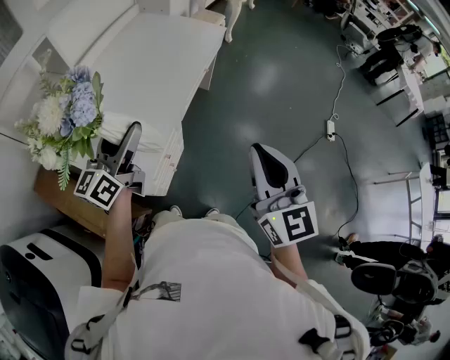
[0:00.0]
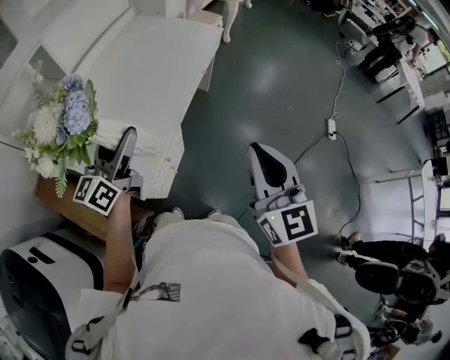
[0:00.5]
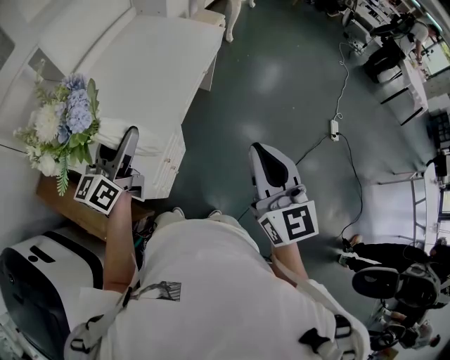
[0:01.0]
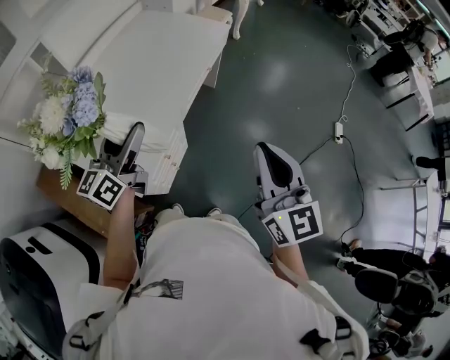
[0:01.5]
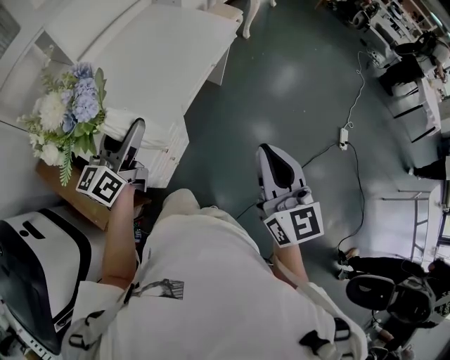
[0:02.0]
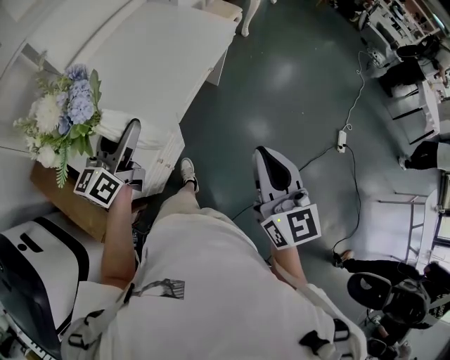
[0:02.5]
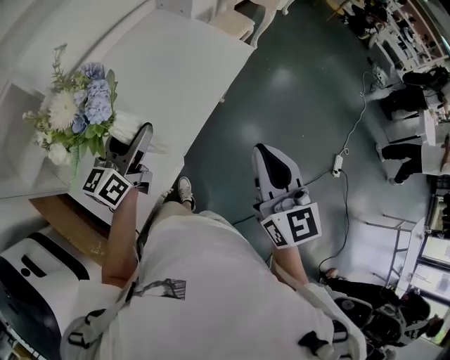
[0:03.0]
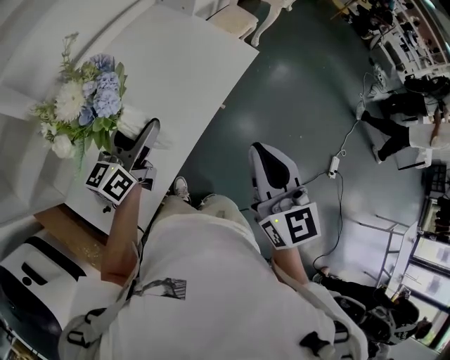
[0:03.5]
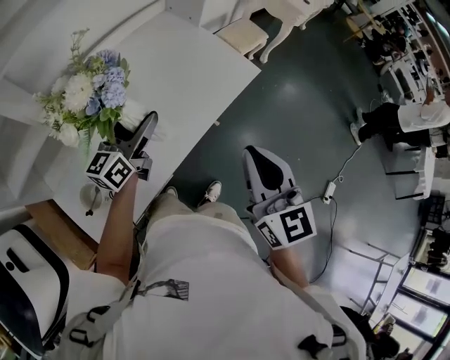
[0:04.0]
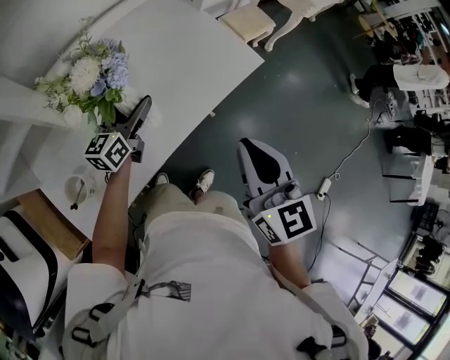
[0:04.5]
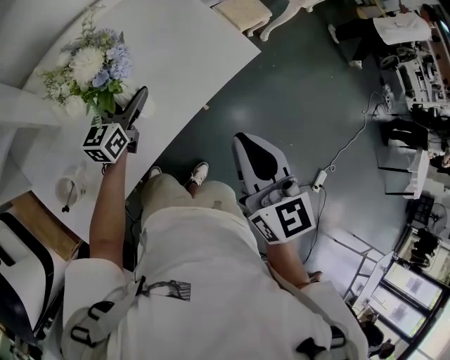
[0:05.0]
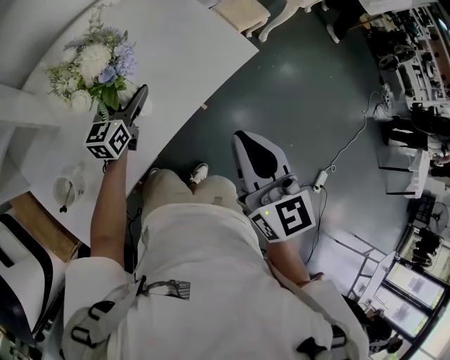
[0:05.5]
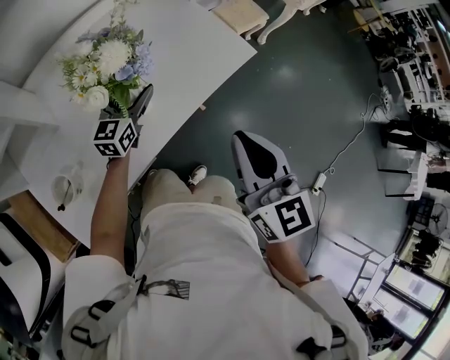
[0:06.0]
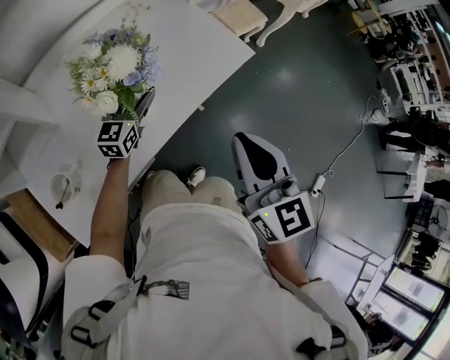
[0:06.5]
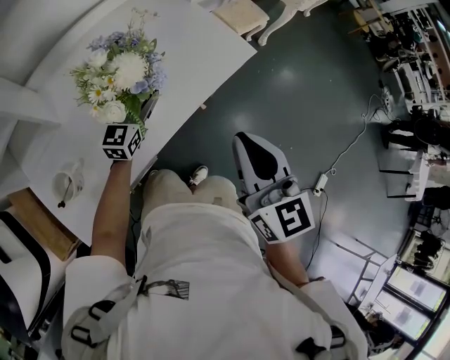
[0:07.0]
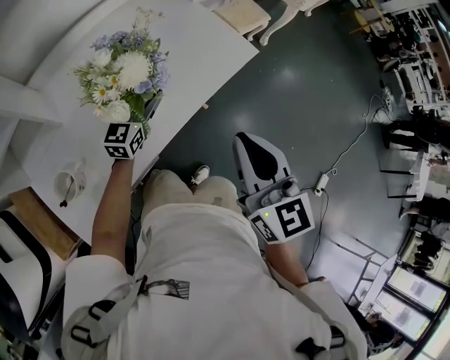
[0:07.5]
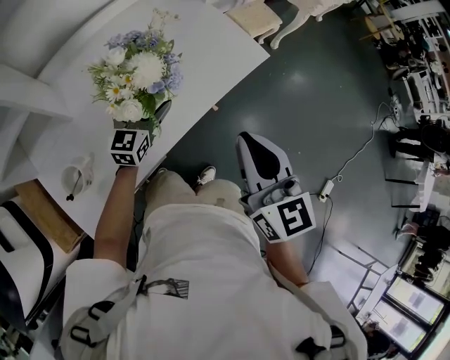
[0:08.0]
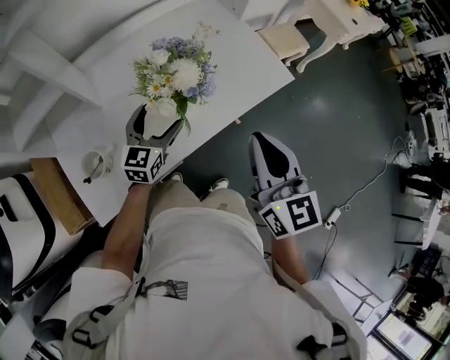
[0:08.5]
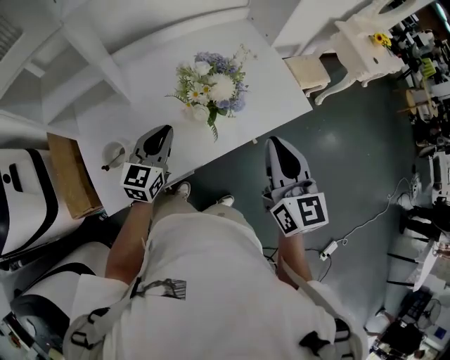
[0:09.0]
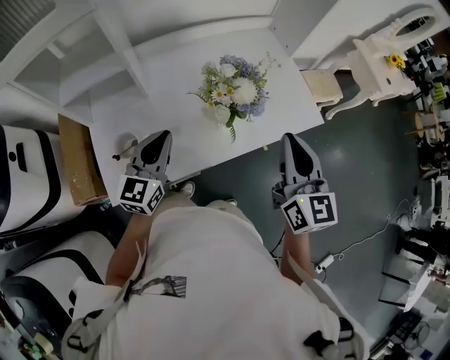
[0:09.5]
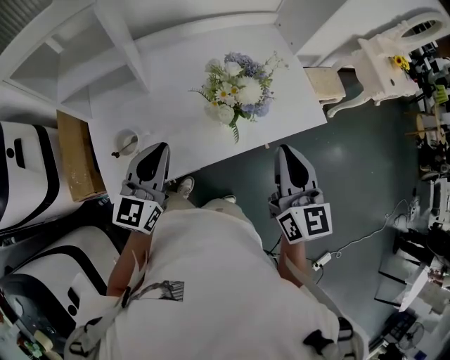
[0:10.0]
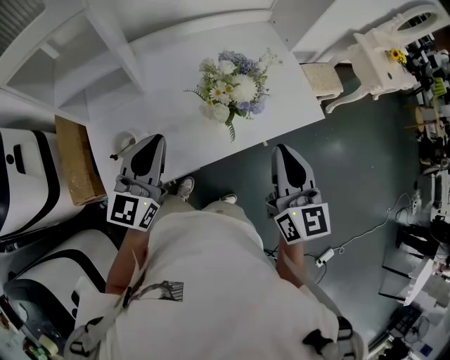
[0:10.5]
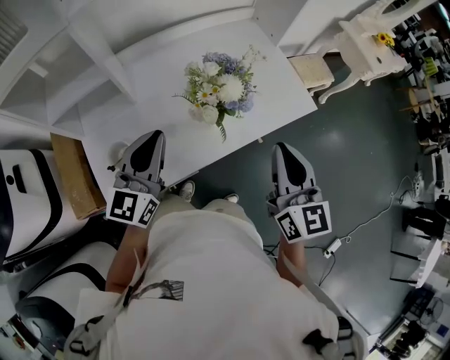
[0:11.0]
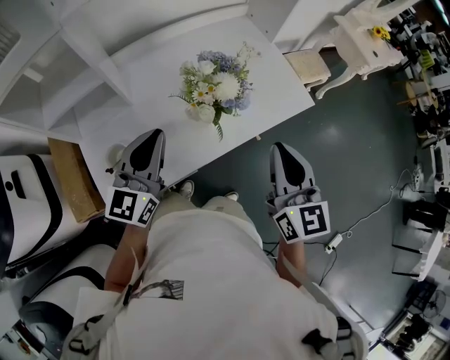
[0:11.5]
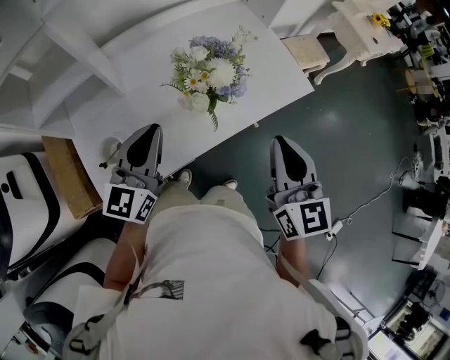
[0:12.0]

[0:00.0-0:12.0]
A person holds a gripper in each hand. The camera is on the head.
0.0 to 2.0 s: The grippers move only a little.
2.0 to 4.0 s: The two grippers go about 35 cm forward.
4.0 to 6.0 s: The right gripper moves approximately 5 cm, while the left gripper shifts roughly 15 cm downward and forward, and changes its angle by about 20 degrees.
6.0 to 8.0 s: The grippers move only a little.
8.0 to 10.0 s: The right gripper shifts some 5 cm to the left. The left gripper travels backward, to the left and upward by some 25 cm, swivels approximately 20 degrees, and closes.
10.0 to 12.0 s: The left gripper ends up about 5 cm from where it was.

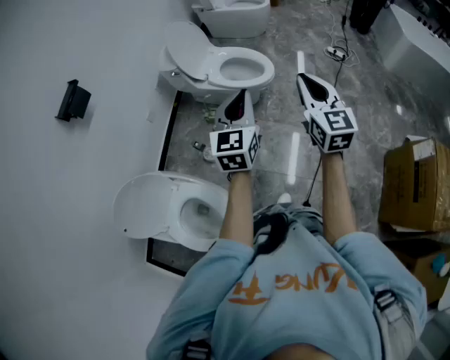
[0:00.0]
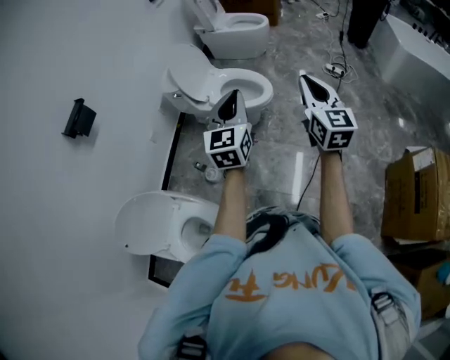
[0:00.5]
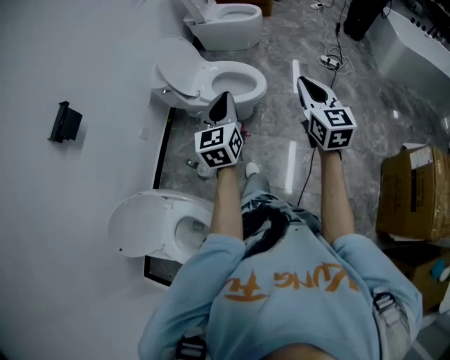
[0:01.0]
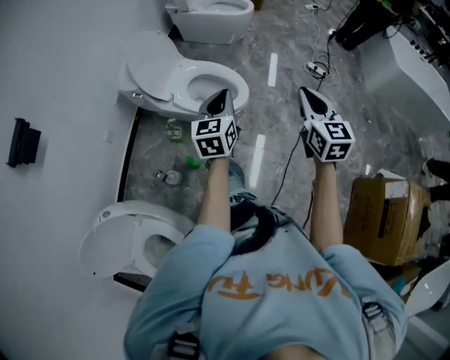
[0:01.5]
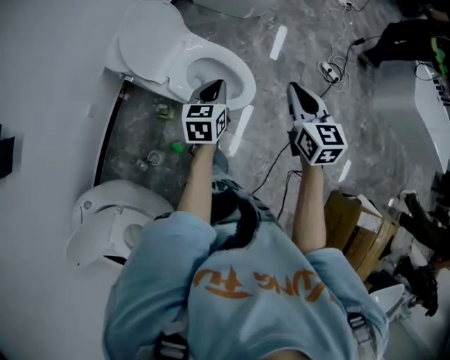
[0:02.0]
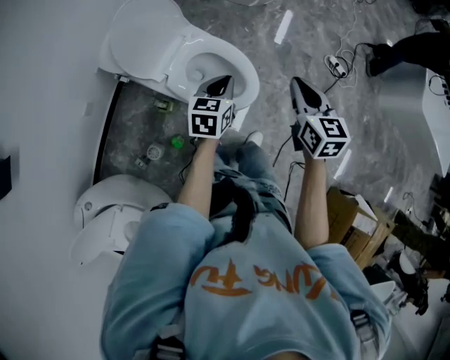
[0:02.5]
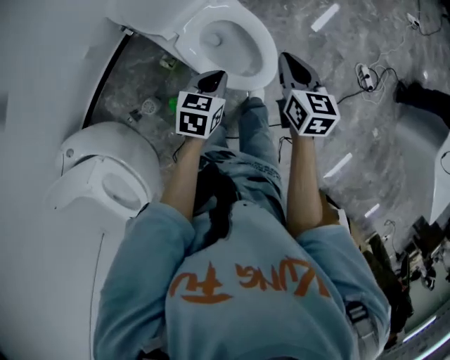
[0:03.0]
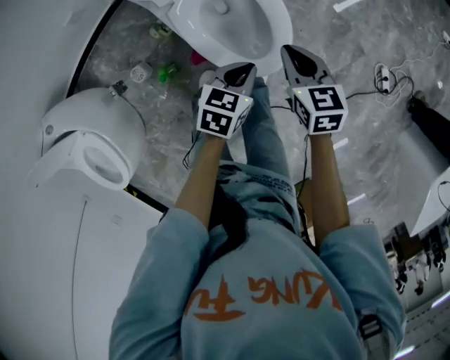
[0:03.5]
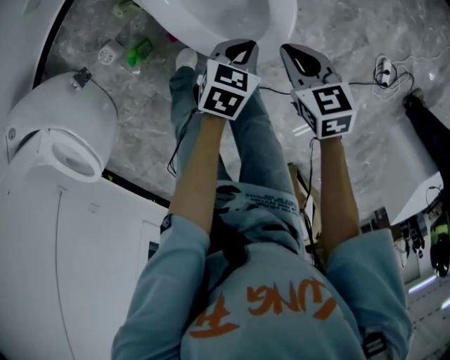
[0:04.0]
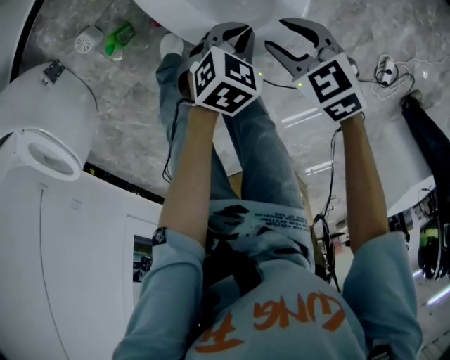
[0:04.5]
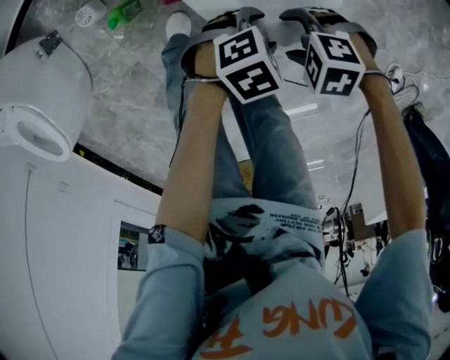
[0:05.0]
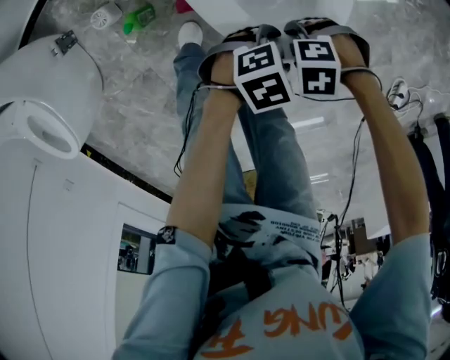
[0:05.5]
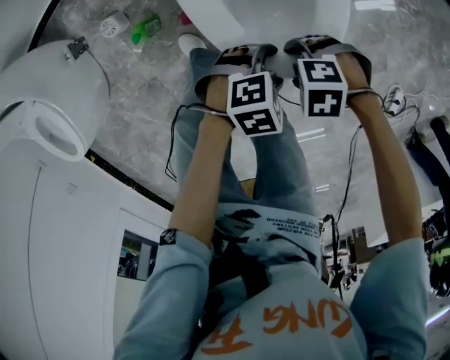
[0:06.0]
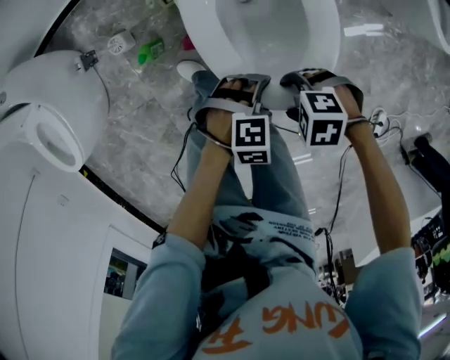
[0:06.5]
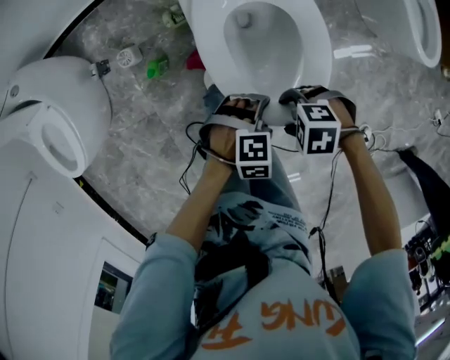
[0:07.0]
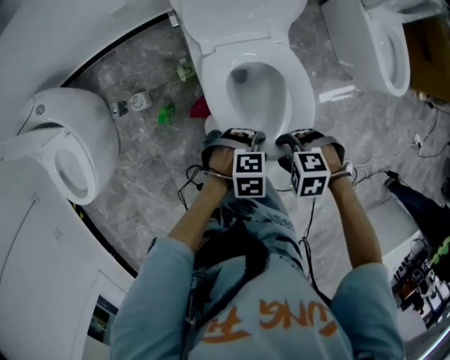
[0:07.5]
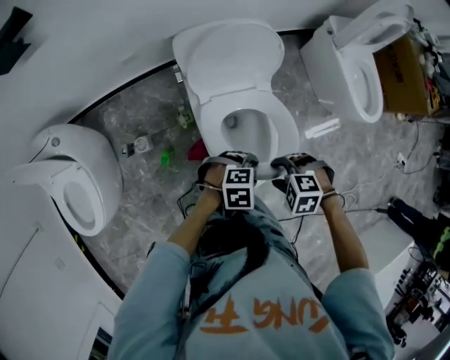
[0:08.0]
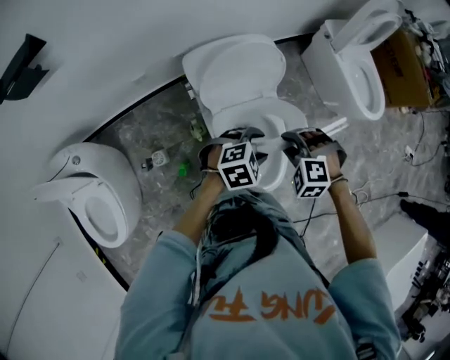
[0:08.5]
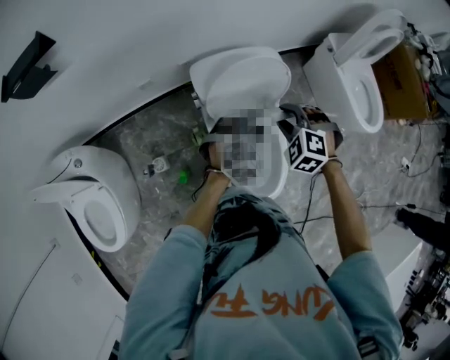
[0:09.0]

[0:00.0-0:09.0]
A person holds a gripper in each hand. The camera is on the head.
0.0 to 2.0 s: Both grippers are carried forward, about 40 cm. The right gripper changes its angle by some 20 degrees; the left gripper travels downward by some 20 cm, and rotates roughly 30 degrees.
2.0 to 4.5 s: The grippers both shift downward by roughly 40 cm. The right gripper tips its fingers downward by roughly 40 degrees, and opens its fingers, while the left gripper points its fingers about 30 degrees further downward.
4.5 to 7.0 s: The two grippers go some 10 cm upward. The left gripper rotates some 40 degrees, and opens up; the right gripper changes its angle by roughly 60 degrees.
7.0 to 9.0 s: The left gripper ends up roughly 40 cm from where it was, changes its angle by about 30 degrees, and closes its fingers. Meanwhile the right gripper changes place by approximately 40 cm, swivels some 60 degrees, and closes its fingers.

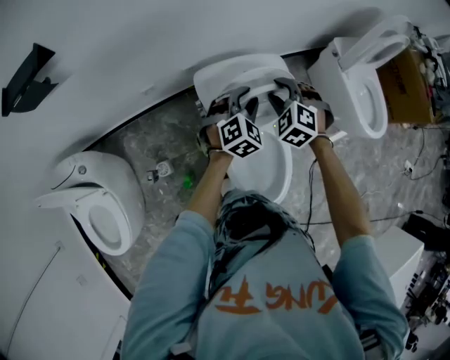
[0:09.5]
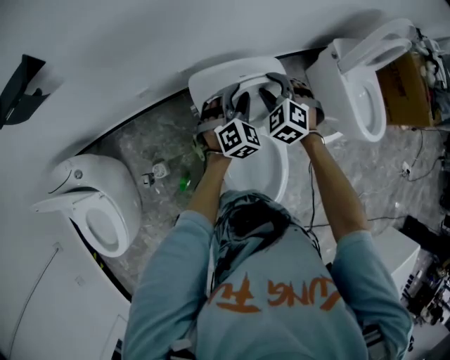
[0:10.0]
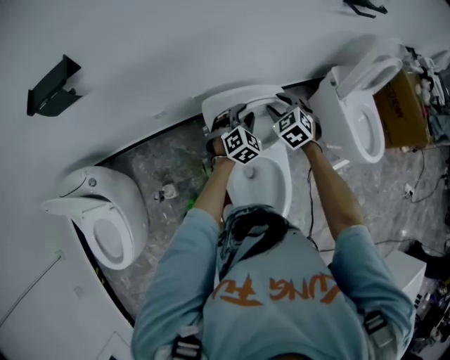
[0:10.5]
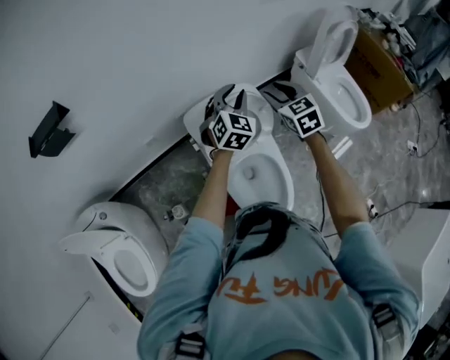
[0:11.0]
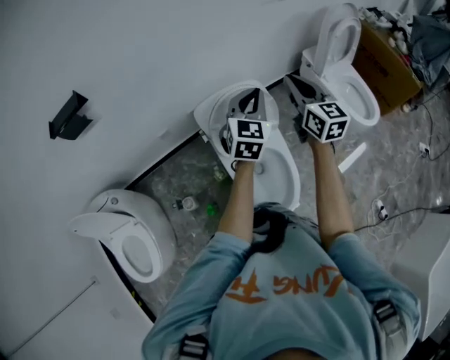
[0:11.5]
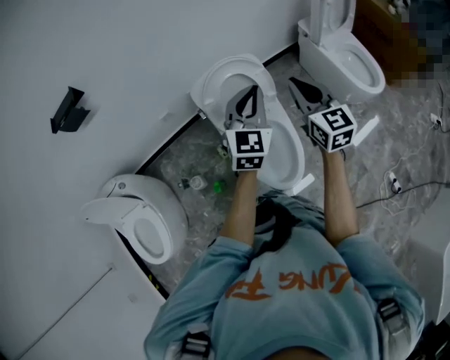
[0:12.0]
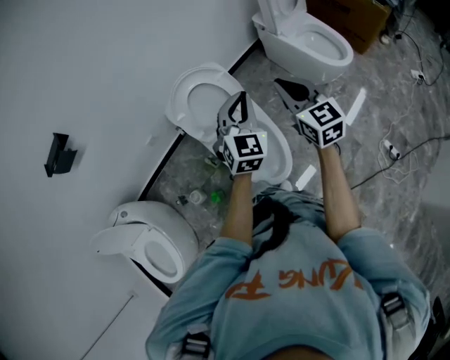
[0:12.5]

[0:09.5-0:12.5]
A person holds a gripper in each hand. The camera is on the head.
9.5 to 11.0 s: The left gripper is displaced upward by about 15 cm. The right gripper is displaced upward and to the right by some 15 cm, and rolls clockwise, seen from behind, by some 40 degrees.
11.0 to 12.5 s: The two grippers go about 30 cm backward and to the right. The right gripper changes its angle by roughly 30 degrees, and closes its fingers.

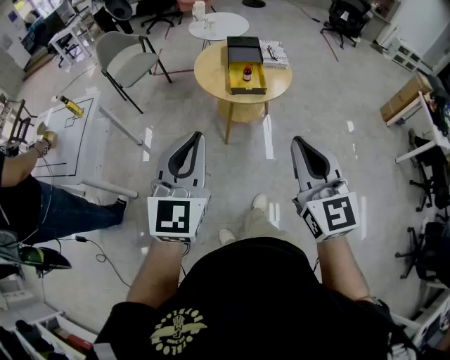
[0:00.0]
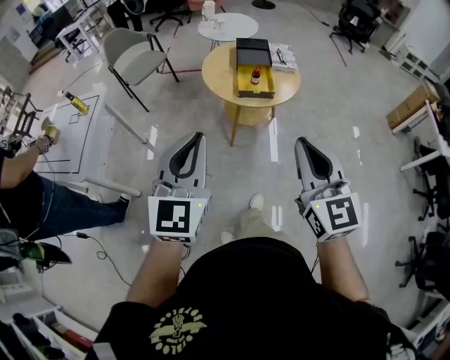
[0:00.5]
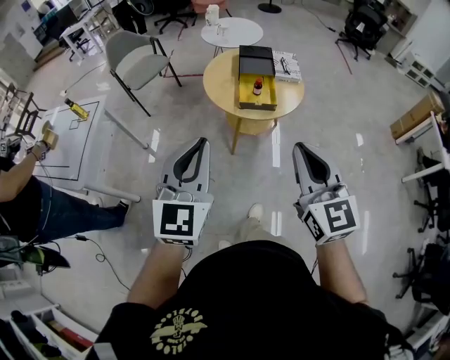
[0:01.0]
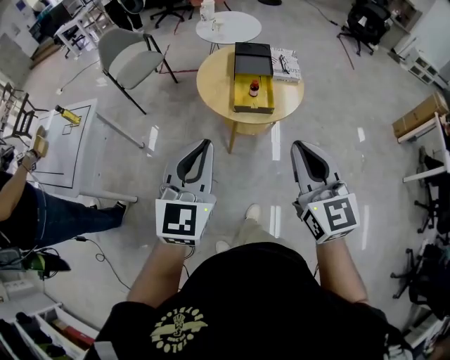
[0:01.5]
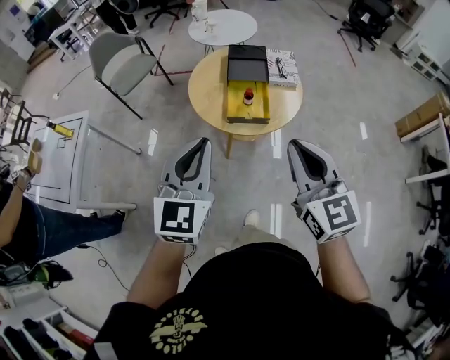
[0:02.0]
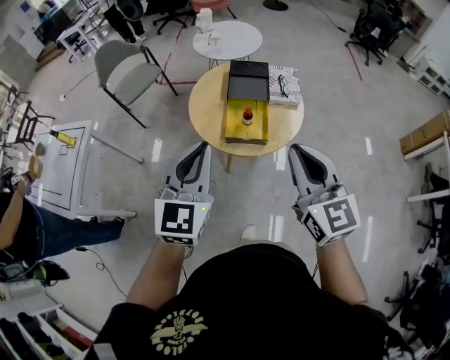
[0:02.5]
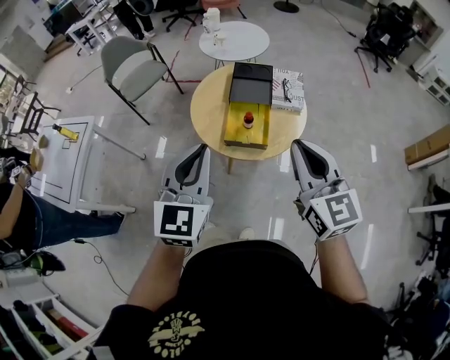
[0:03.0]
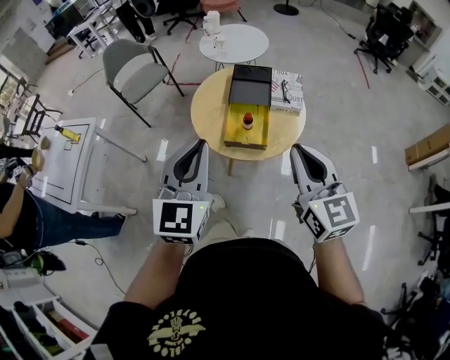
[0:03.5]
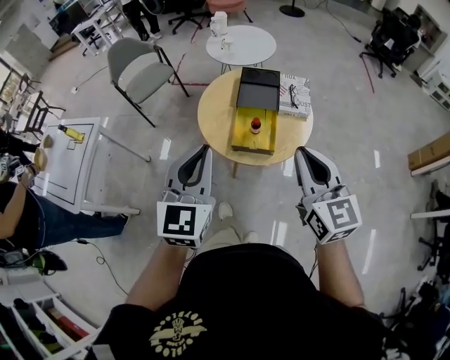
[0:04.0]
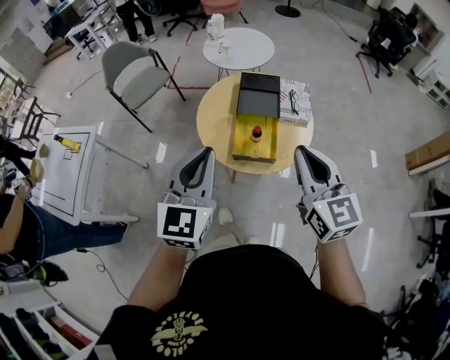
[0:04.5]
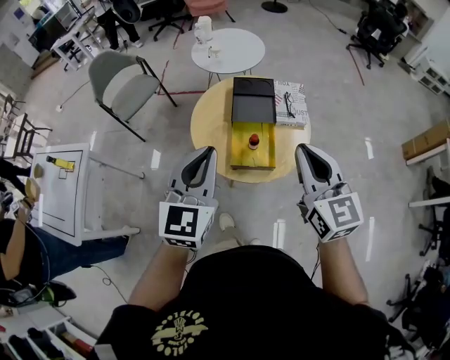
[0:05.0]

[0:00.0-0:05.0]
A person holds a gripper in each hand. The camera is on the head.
0.0 to 2.5 s: The left gripper goes approximately 35 cm forward and to the right, while the right gripper goes approximately 30 cm forward.
2.5 to 5.0 s: Both grippers travel together forward, roughly 15 cm.
